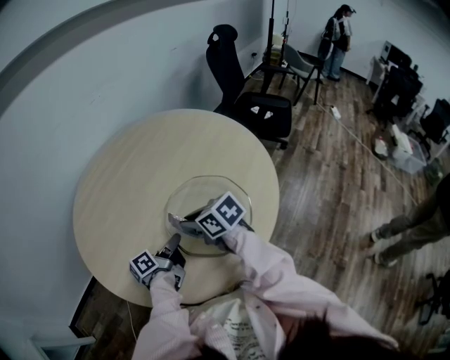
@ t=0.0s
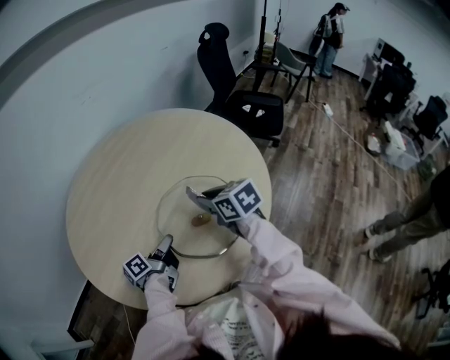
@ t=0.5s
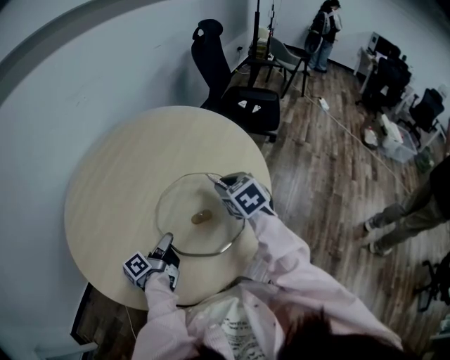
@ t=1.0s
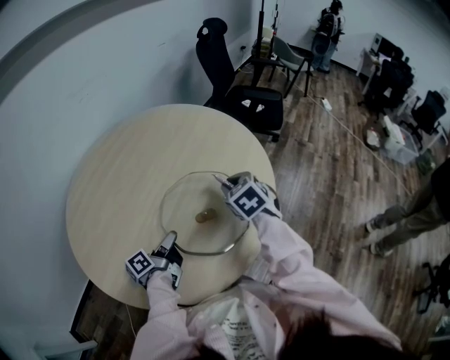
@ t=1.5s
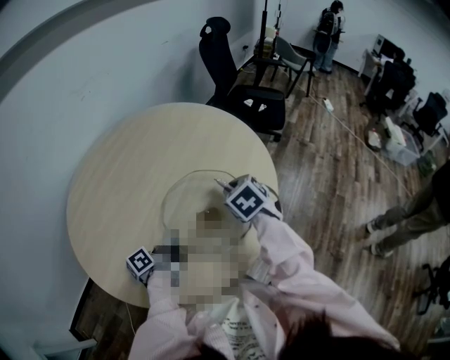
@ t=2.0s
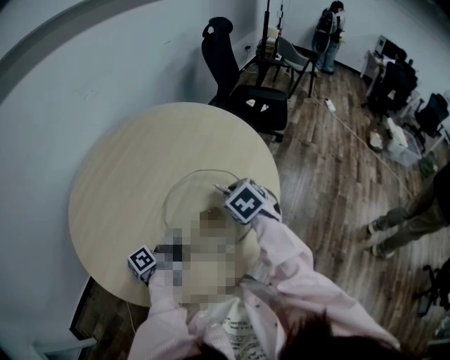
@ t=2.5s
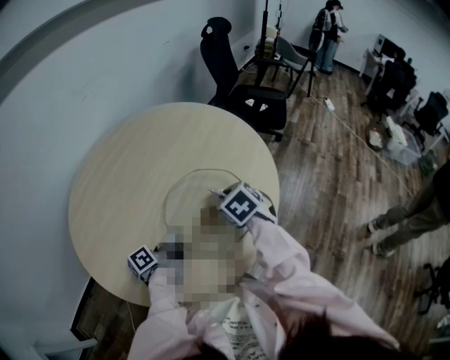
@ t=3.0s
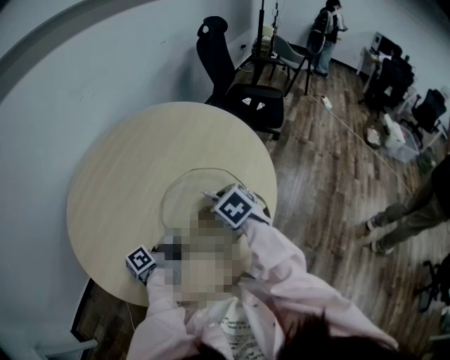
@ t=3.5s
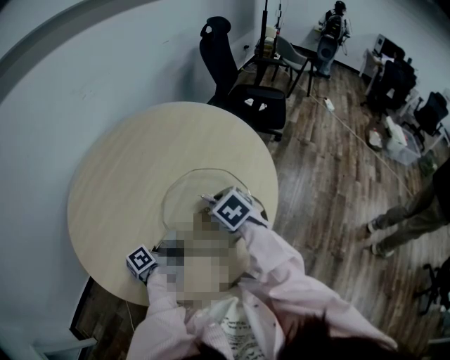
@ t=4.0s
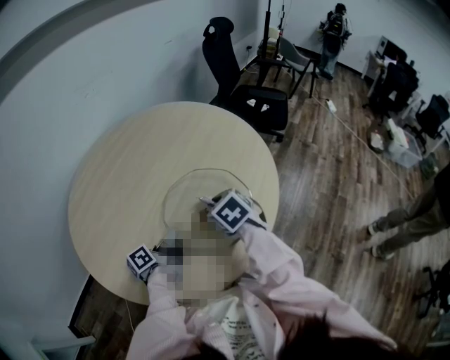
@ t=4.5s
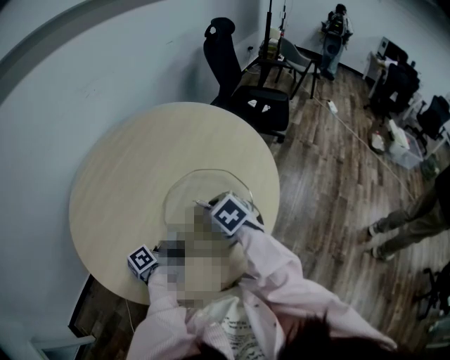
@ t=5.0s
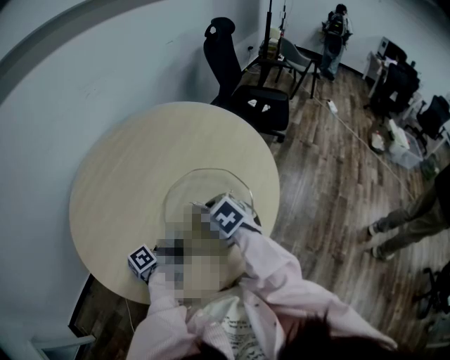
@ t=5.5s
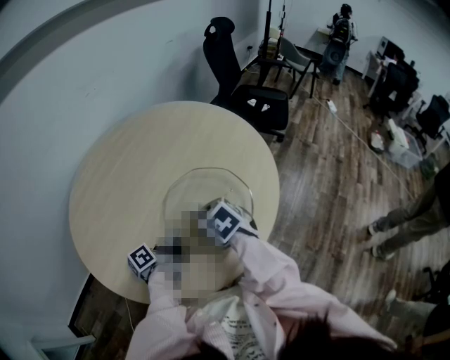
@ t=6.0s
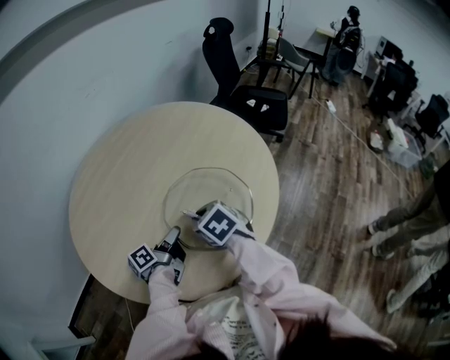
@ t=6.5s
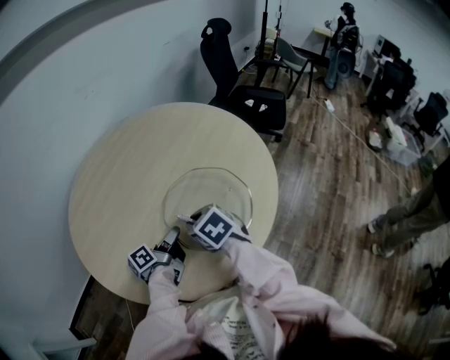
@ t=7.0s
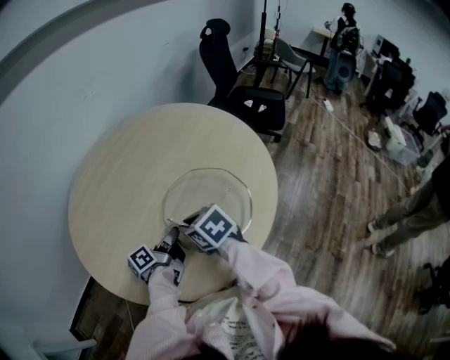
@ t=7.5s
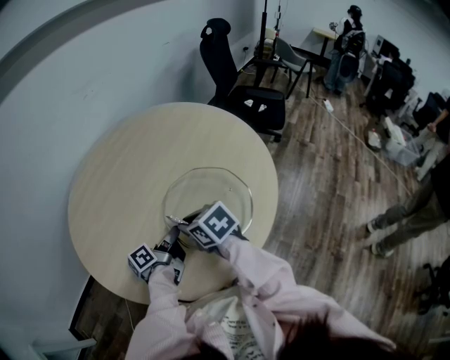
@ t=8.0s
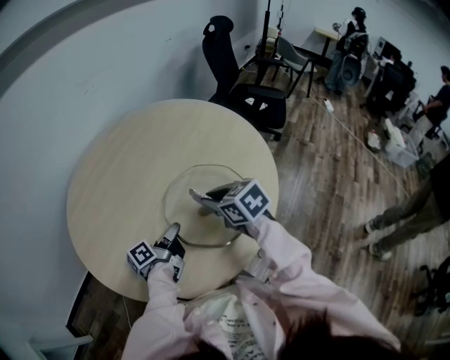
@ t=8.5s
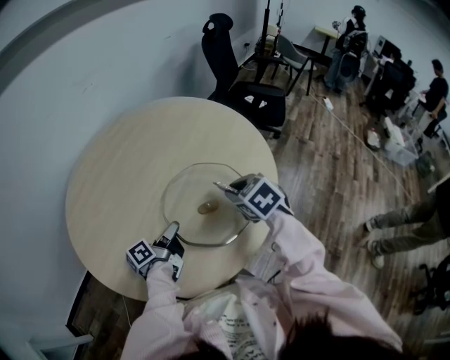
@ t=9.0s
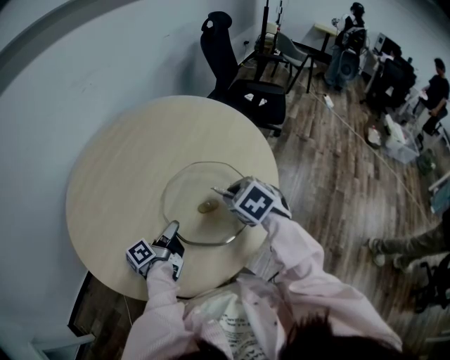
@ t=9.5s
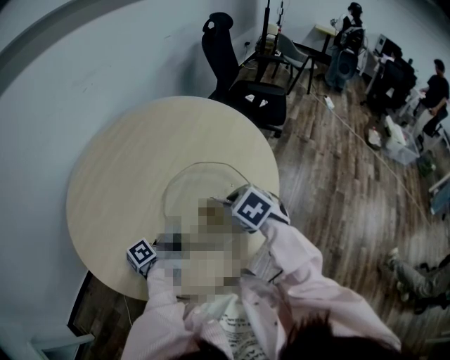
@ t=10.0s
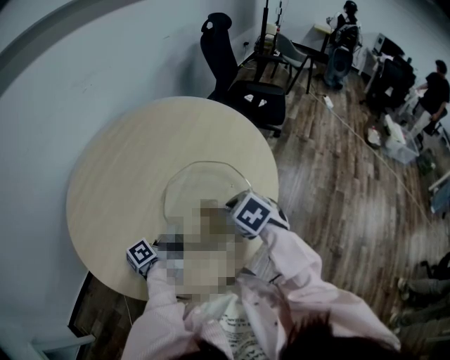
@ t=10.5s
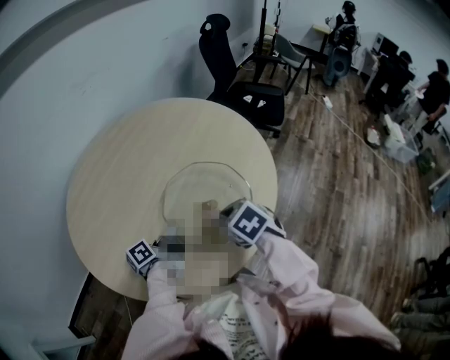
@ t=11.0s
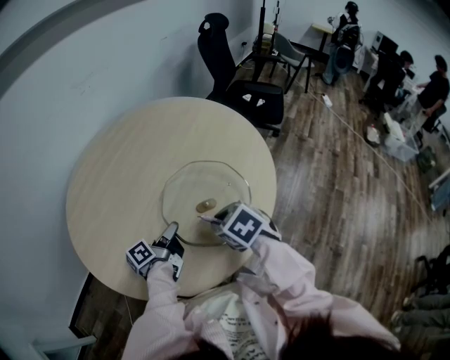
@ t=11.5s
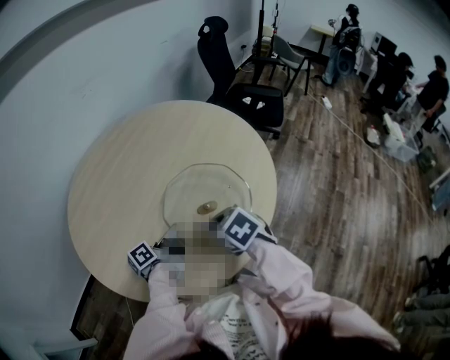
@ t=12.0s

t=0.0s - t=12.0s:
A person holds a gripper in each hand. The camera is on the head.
t=0.0s - t=2.0s: The right gripper ends up approximately 15 cm from where it was, and changes its angle by some 40 degrees.
t=2.0s - t=4.0s: The right gripper shifts roughly 5 cm to the left.
t=4.0s - t=6.0s: The right gripper moves to the left, approximately 5 cm.
t=6.0s - t=8.0s: The right gripper is displaced to the left by about 5 cm.
t=8.0s - t=10.0s: The right gripper shifts about 15 cm to the right, and changes its angle by approximately 20 degrees.
t=10.0s - t=12.0s: The right gripper is displaced to the left by approximately 5 cm.

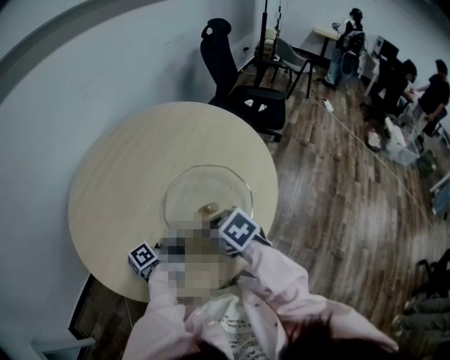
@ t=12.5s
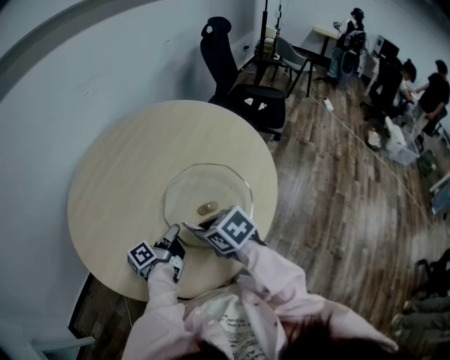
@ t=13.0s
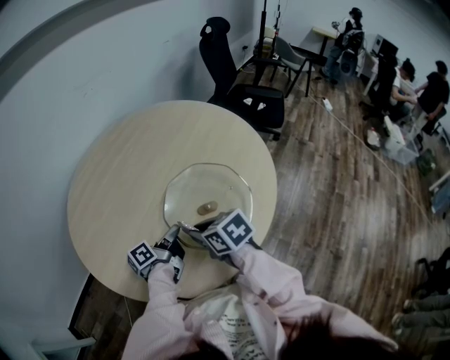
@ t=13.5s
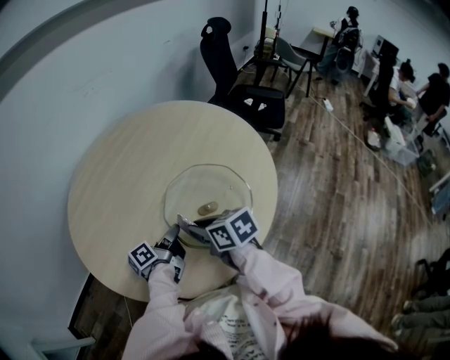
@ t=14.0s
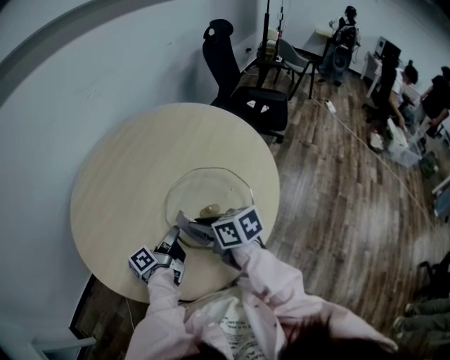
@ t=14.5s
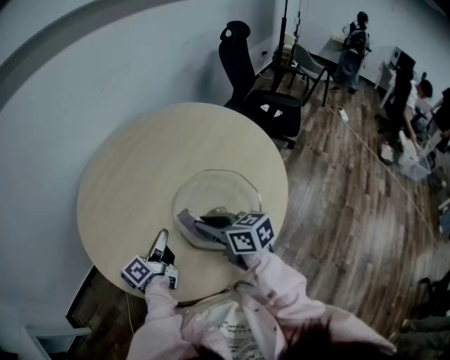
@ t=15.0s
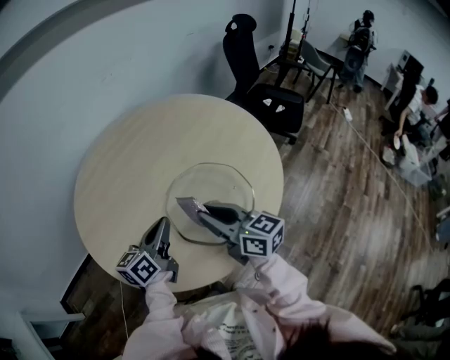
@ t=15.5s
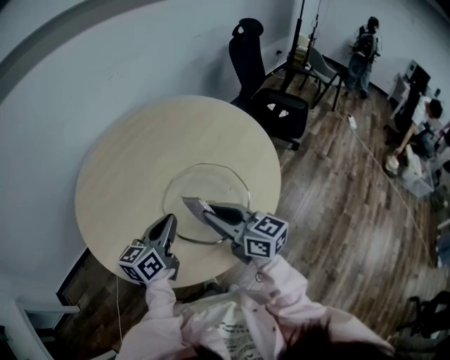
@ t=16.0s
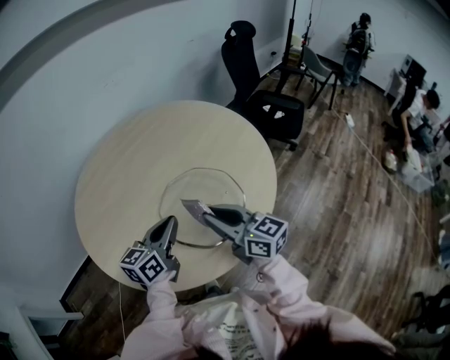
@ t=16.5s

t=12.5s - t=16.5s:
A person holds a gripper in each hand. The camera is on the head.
t=12.5s - t=14.5s: The right gripper changes its angle by approximately 30 degrees.
t=14.5s - t=16.5s: The right gripper heads to the right and upward, covering approximately 10 cm, and swivels about 30 degrees. Meanwhile the left gripper moves upward, approximately 10 cm, twists approximately 50 degrees clockwise, seen from behind, and closes.

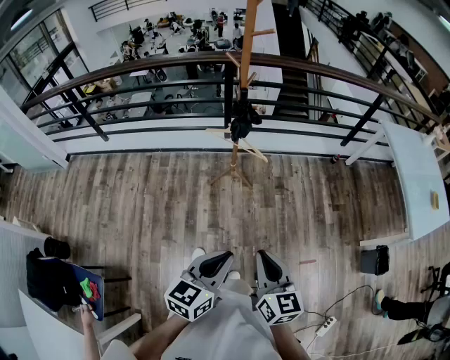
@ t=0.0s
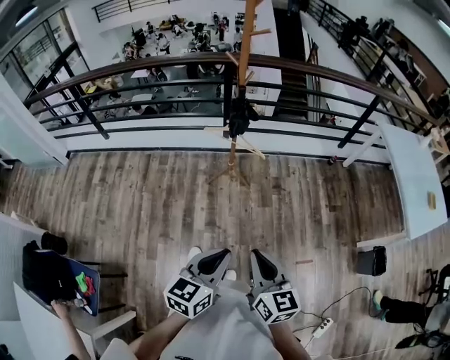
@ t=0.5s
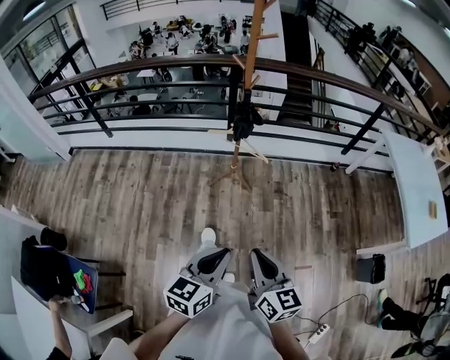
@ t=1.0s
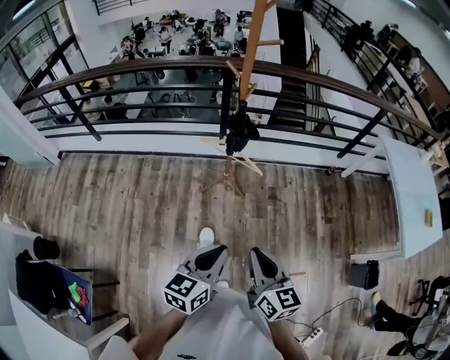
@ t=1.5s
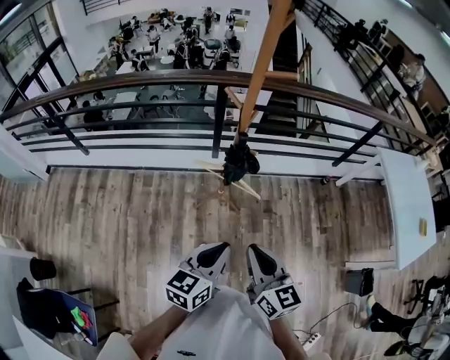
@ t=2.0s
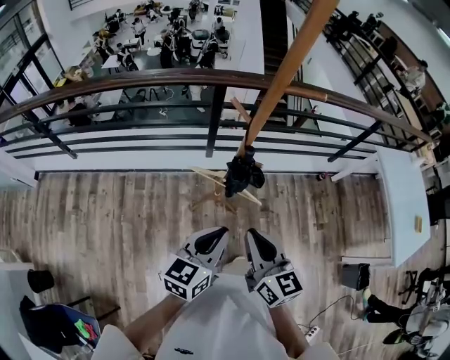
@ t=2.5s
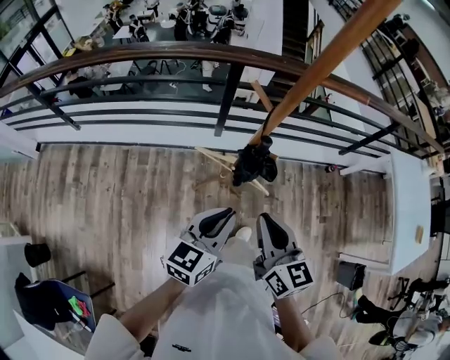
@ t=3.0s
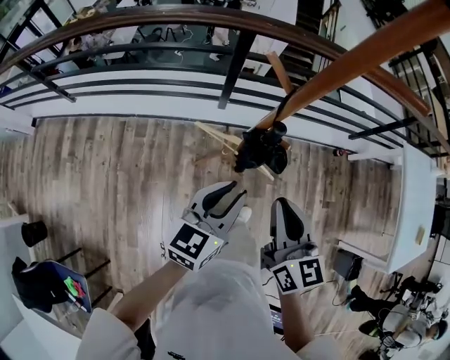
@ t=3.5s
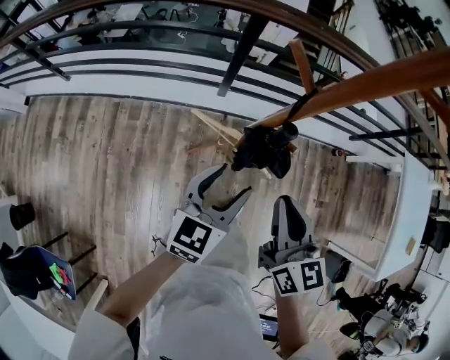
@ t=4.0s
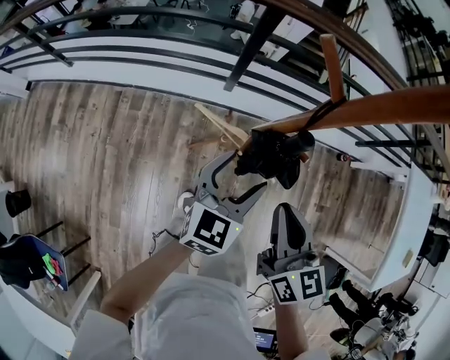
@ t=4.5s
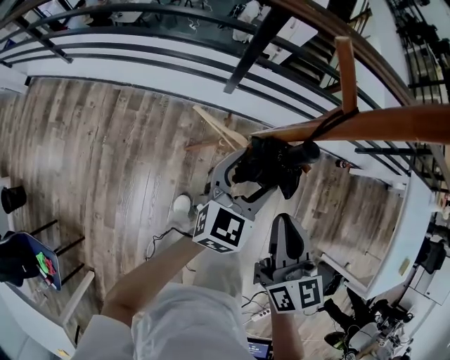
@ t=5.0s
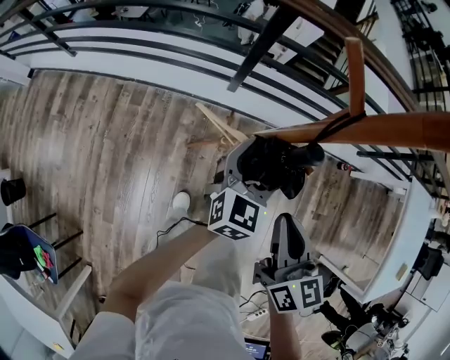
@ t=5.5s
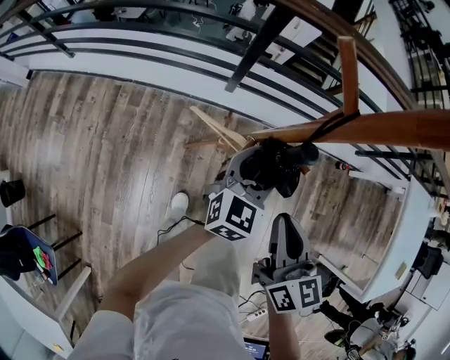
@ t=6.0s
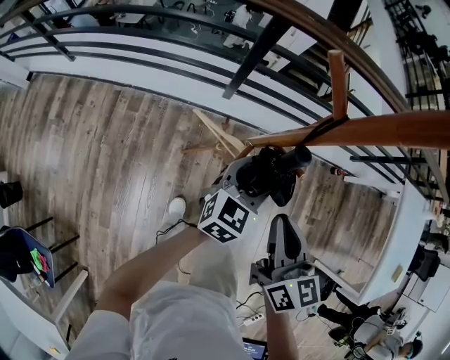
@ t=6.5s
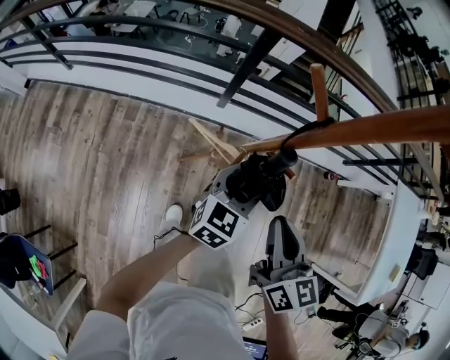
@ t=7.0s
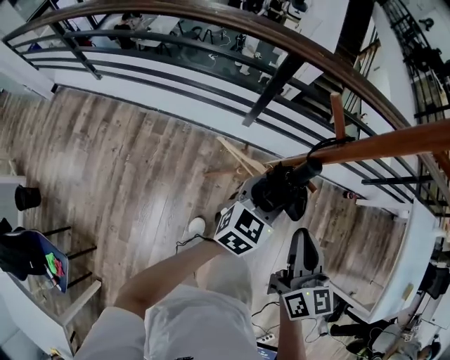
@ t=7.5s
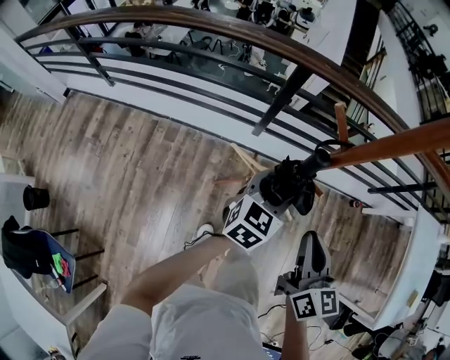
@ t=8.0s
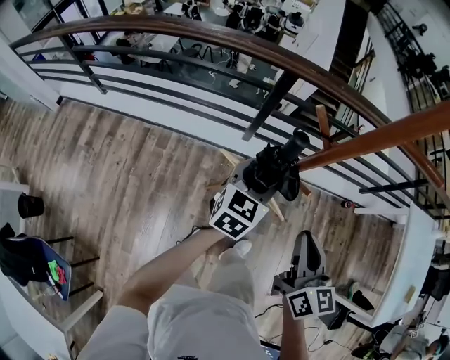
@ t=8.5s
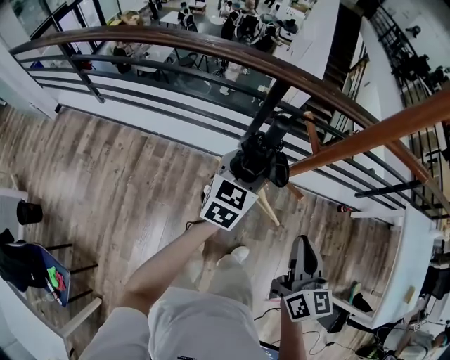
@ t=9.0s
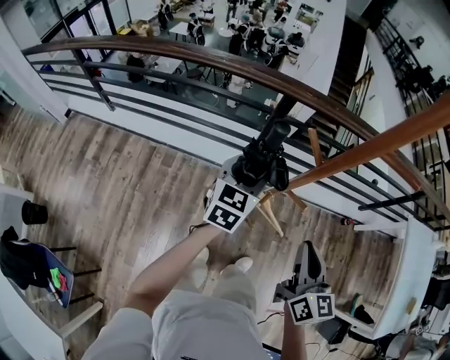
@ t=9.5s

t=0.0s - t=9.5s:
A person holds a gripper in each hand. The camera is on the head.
t=0.0s - t=2.0s: Both grippers move forward, about 30 cm.
t=2.0s - t=4.0s: The right gripper goes roughly 25 cm forward. The left gripper shifts approximately 30 cm forward and downward, and opens up.
t=4.0s - t=5.5s: The left gripper travels forward, downward and to the right by some 15 cm. The right gripper goes some 5 cm downward.
t=5.5s - t=7.5s: The grippers both shift upward by roughly 5 cm. The left gripper closes.
t=7.5s - t=9.5s: The left gripper moves to the left and upward, roughly 15 cm, while the right gripper shifts approximately 5 cm upward.

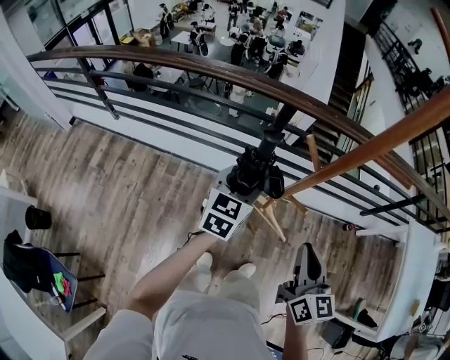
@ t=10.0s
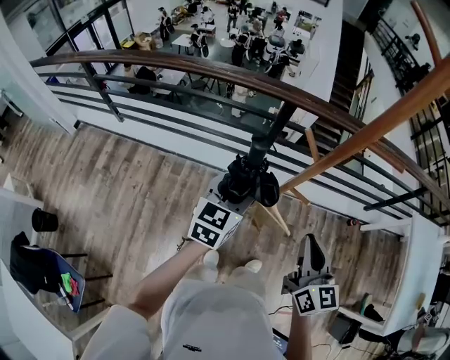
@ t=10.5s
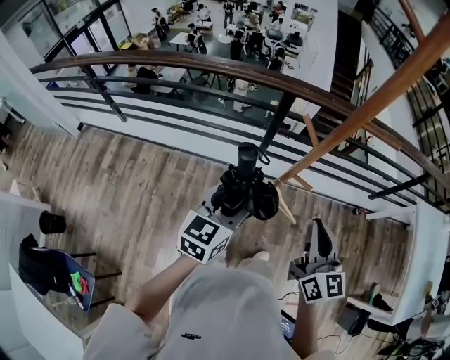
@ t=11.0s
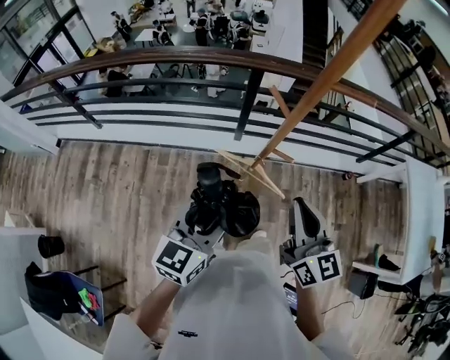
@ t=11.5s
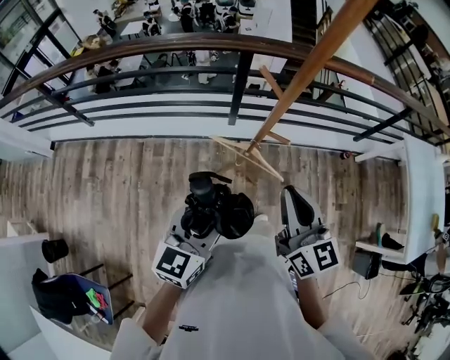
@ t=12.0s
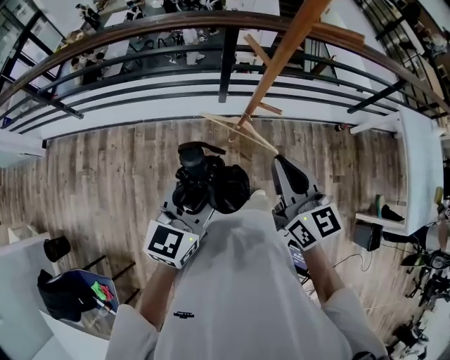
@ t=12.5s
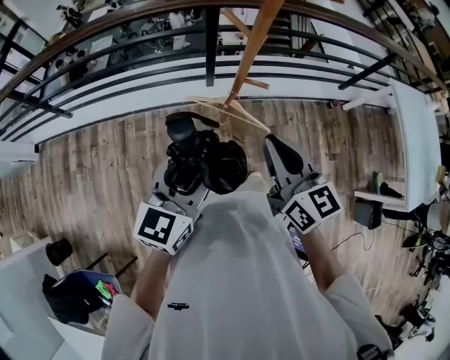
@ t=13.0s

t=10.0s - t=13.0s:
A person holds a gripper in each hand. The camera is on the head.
t=10.0s - t=11.5s: The left gripper shifts approximately 20 cm backward. The right gripper changes place by roughly 5 cm.
t=11.5s - t=13.0s: The grippers move only a little.
